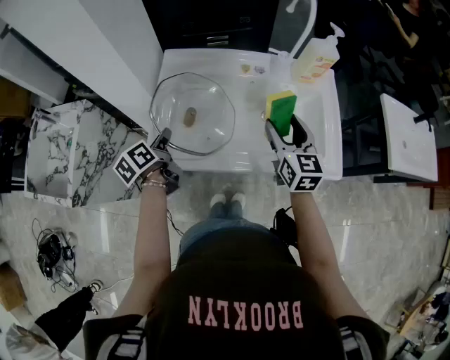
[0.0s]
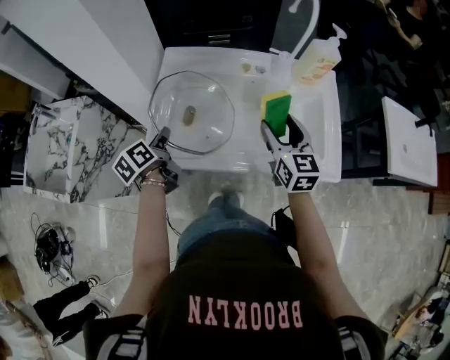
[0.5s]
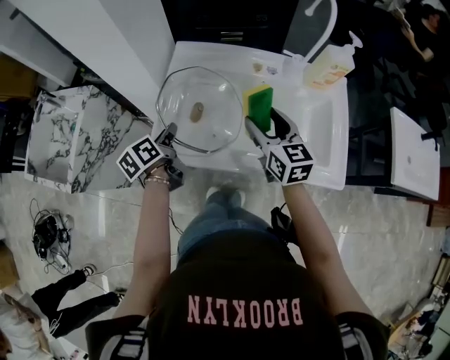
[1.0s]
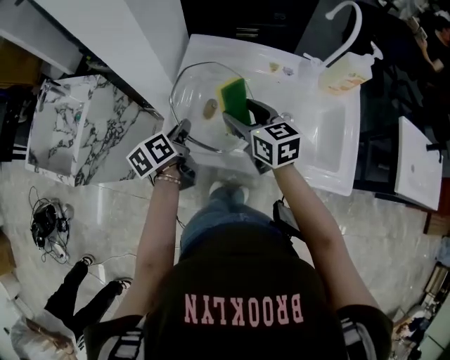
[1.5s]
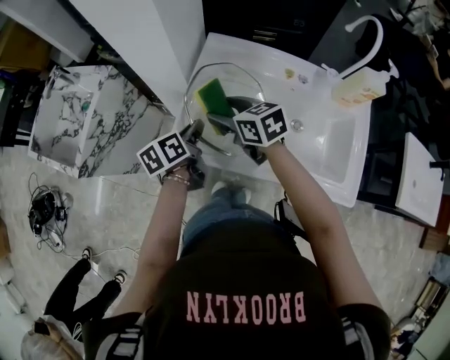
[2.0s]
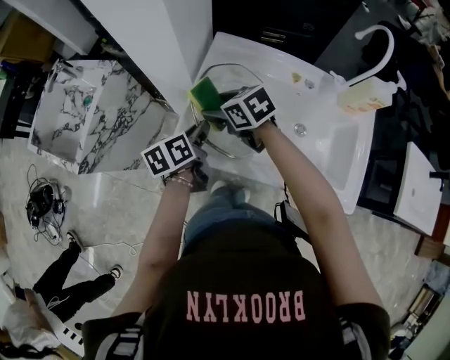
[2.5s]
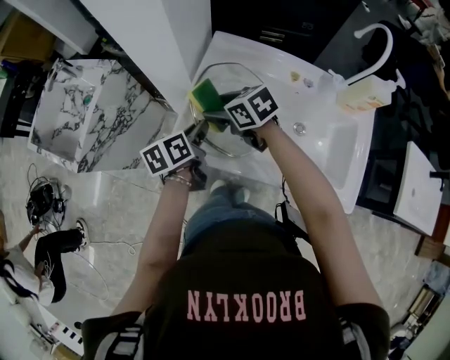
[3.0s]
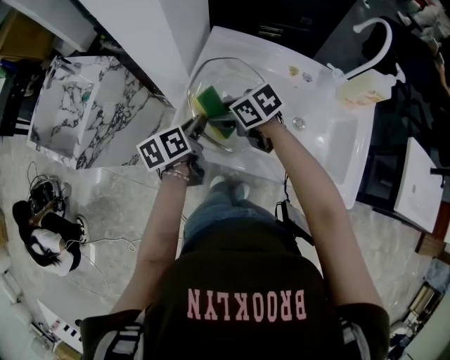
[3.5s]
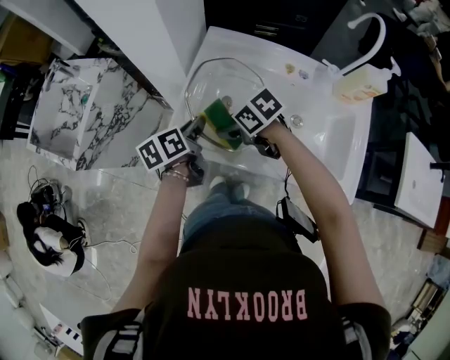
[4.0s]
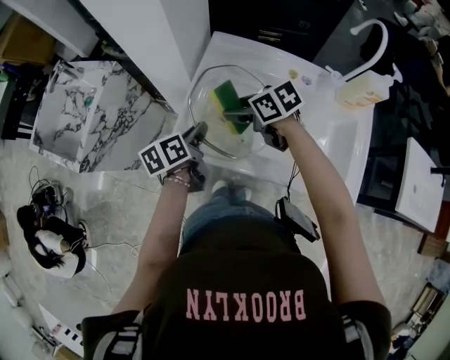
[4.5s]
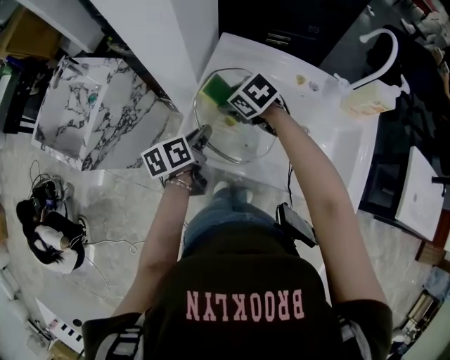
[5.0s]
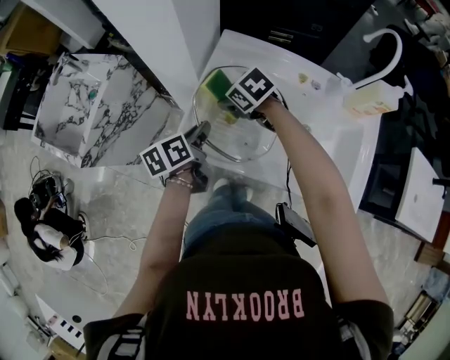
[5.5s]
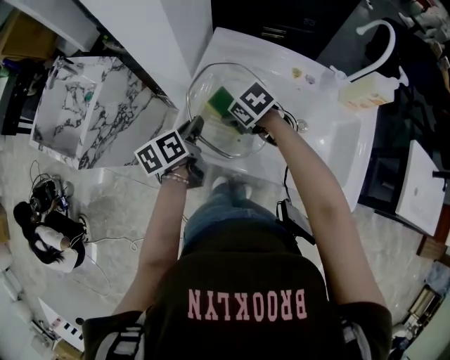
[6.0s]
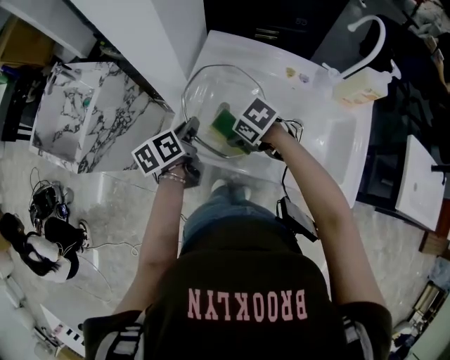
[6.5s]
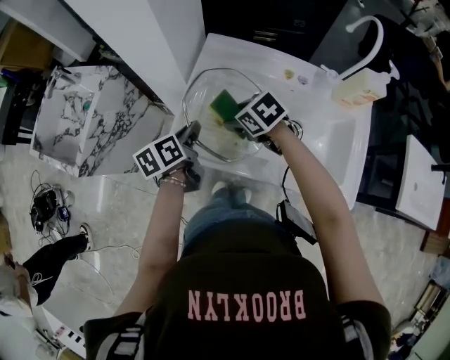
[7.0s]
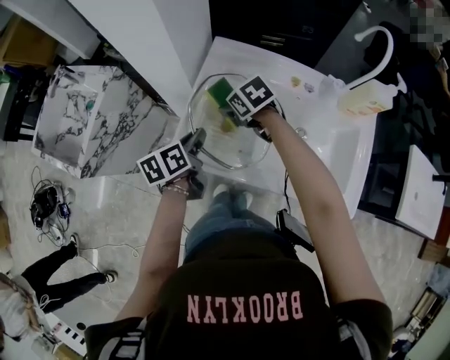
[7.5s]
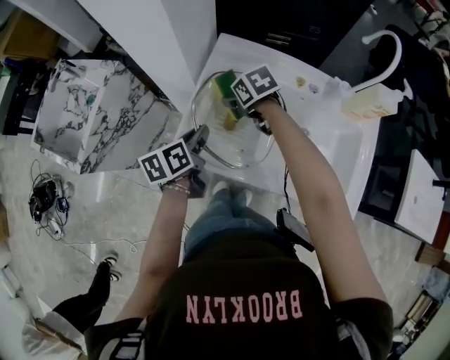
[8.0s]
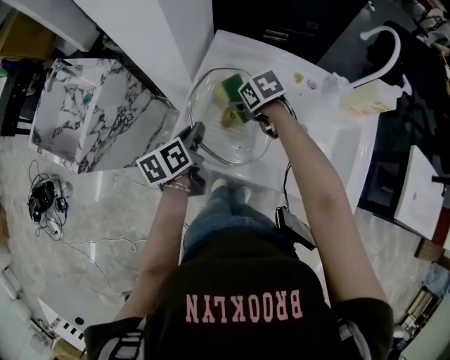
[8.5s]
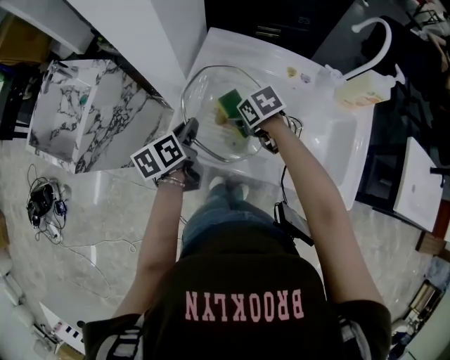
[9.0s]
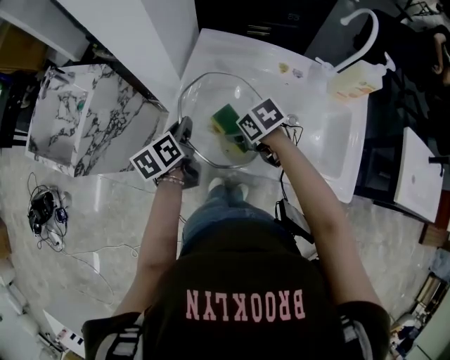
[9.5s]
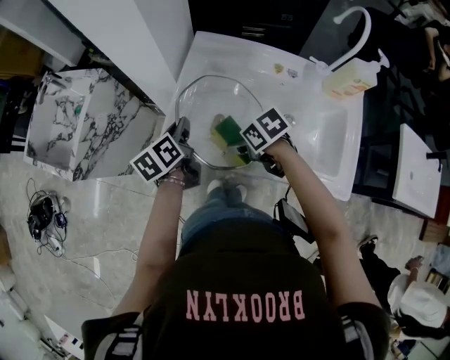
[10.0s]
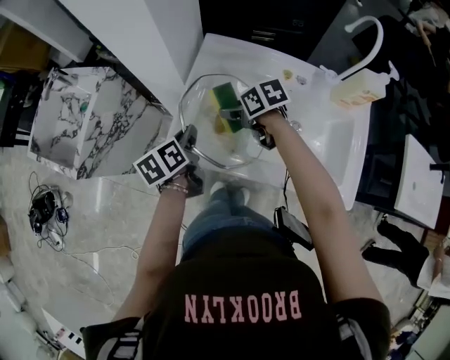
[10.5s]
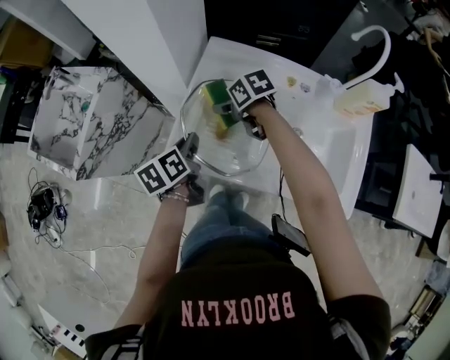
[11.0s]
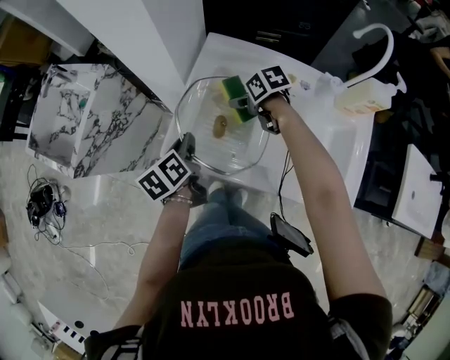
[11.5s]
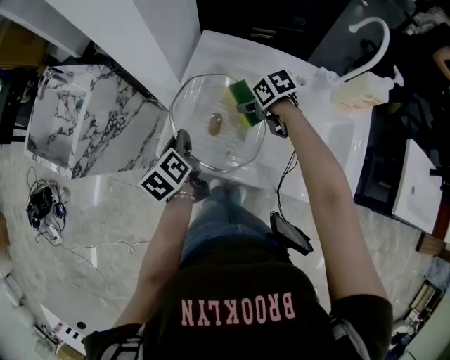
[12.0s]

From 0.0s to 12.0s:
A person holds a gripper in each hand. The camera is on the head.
From 0.0s to 2.0s: The right gripper moves about 30 cm, and changes its angle by approximately 50 degrees.
From 2.0s to 4.0s: The right gripper shifts approximately 5 cm downward, and swivels approximately 30 degrees.
From 6.0s to 8.0s: The right gripper changes place by about 10 cm.
From 8.0s to 10.0s: The right gripper ends up some 20 cm from where it was.
From 10.0s to 12.0s: The right gripper ends up some 15 cm from where it was.

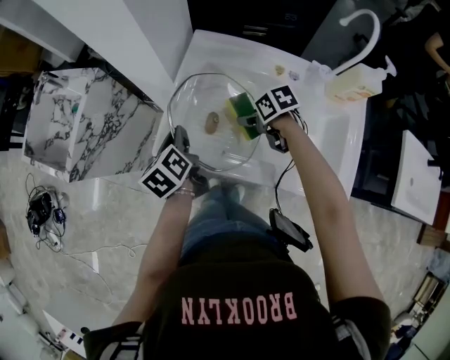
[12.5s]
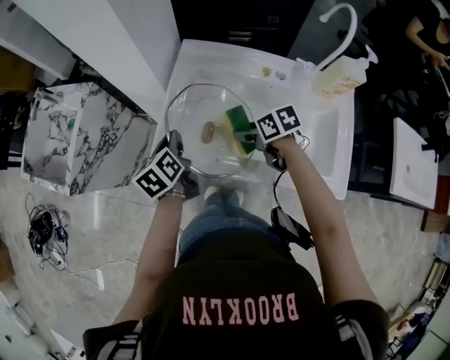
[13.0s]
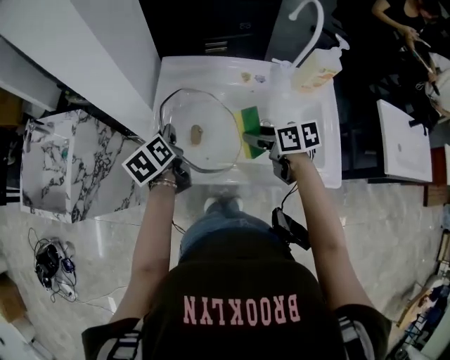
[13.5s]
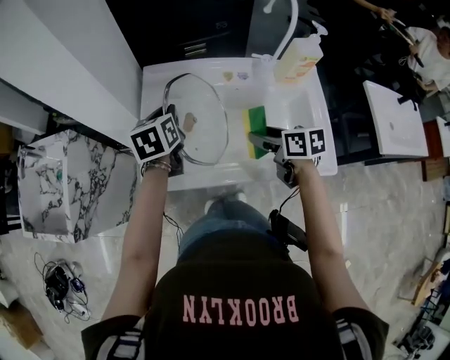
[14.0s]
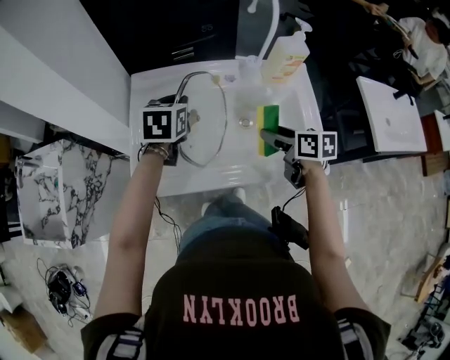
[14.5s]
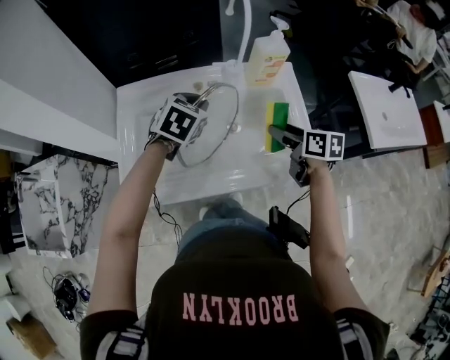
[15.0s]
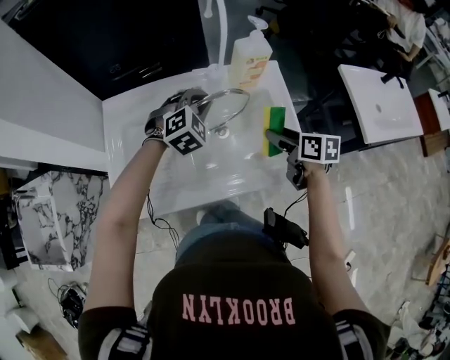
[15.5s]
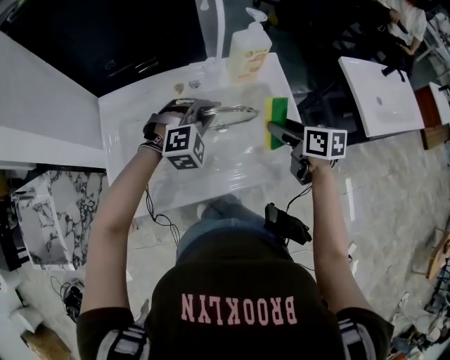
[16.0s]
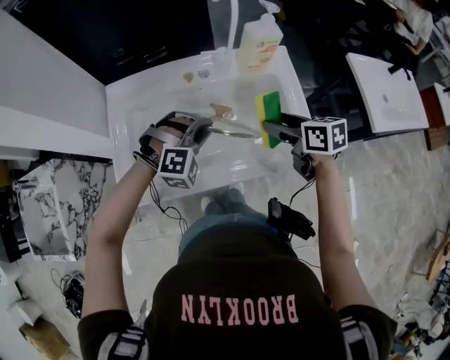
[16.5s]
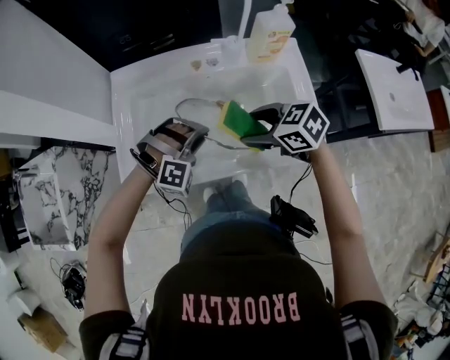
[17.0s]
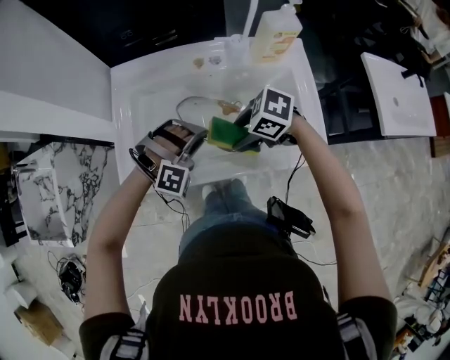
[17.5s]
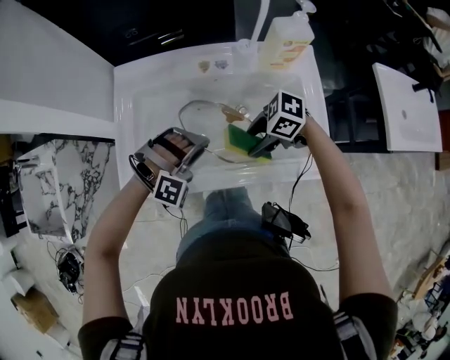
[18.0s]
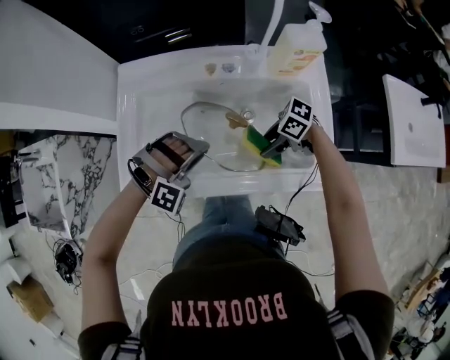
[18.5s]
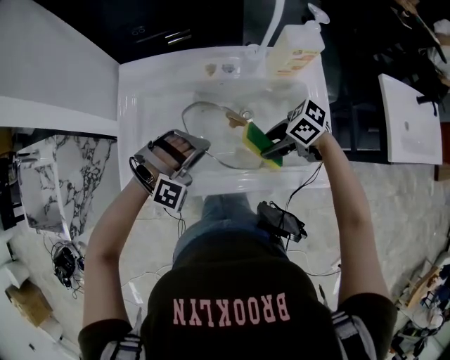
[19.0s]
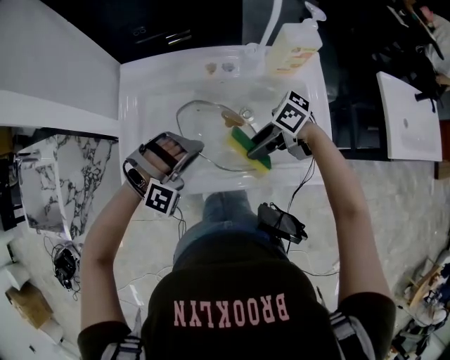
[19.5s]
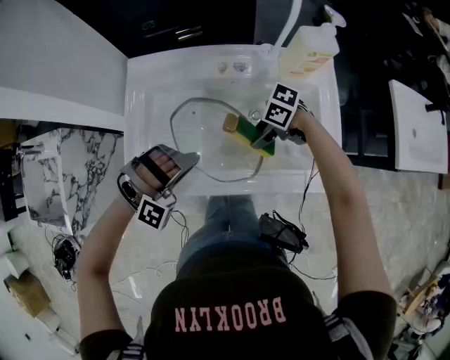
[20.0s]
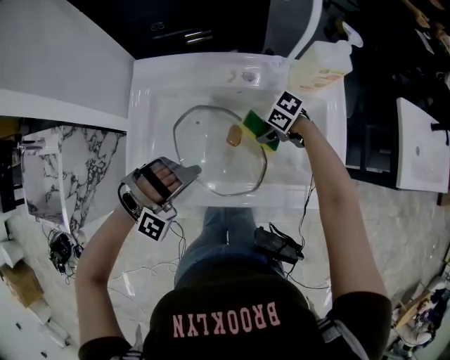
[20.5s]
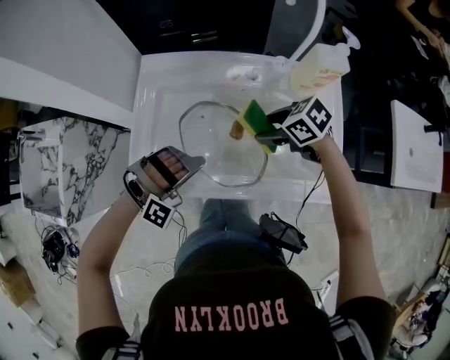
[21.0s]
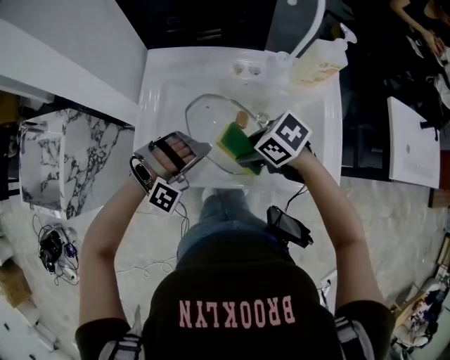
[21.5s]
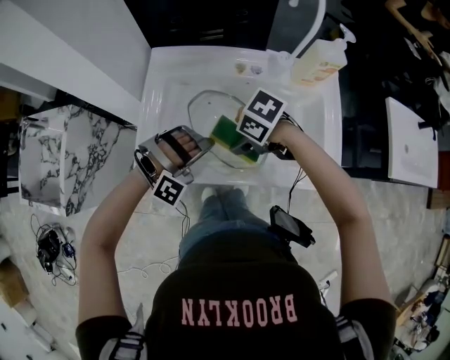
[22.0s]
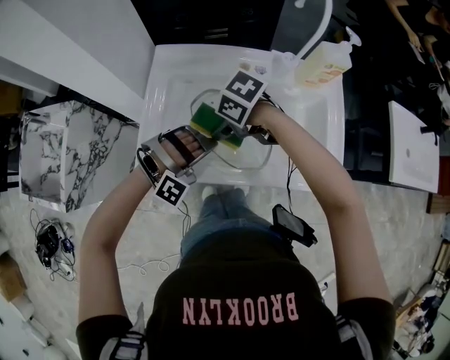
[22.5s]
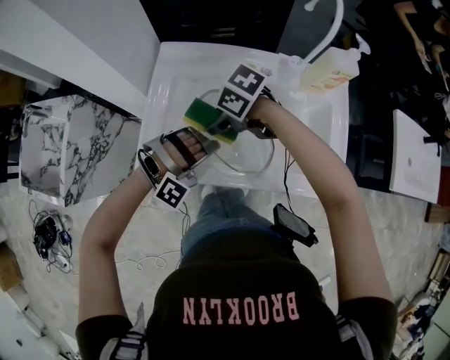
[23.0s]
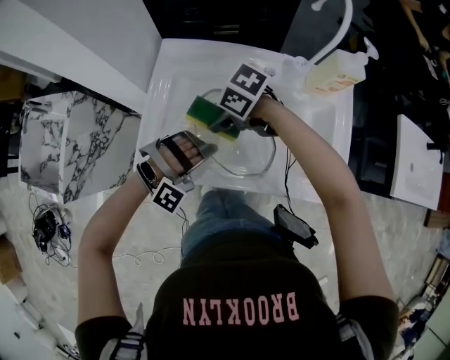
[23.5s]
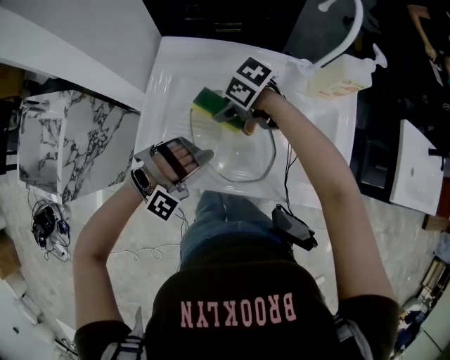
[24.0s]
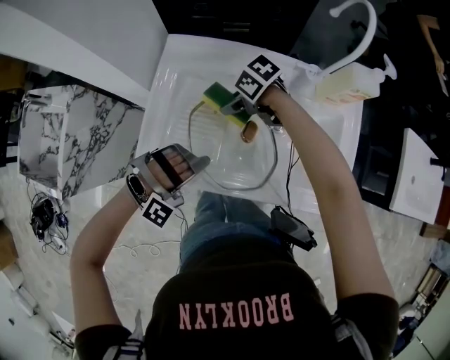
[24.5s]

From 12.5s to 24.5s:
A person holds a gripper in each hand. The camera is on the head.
From 12.5s to 14.5s: The right gripper changes place by roughly 25 cm, and swivels about 50 degrees.
From 16.5s to 18.5s: The right gripper heads downward, covering approximately 15 cm, and turns by roughly 70 degrees.
From 18.5s to 20.5s: The right gripper moves approximately 10 cm.
From 20.5s to 22.5s: The right gripper changes place by some 25 cm.
From 22.5s to 24.5s: The right gripper changes place by approximately 10 cm.

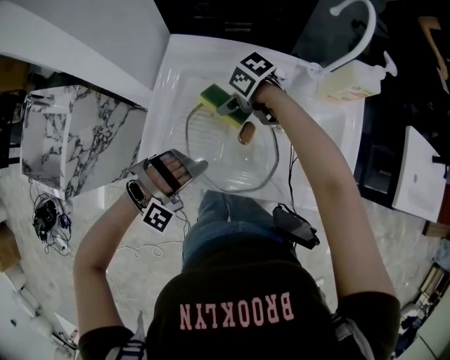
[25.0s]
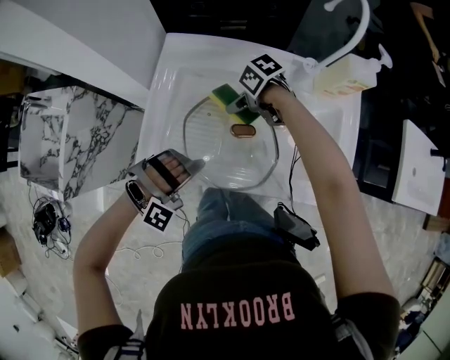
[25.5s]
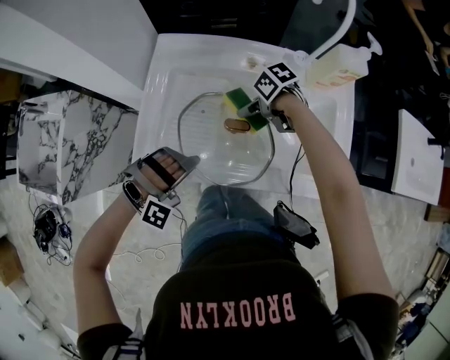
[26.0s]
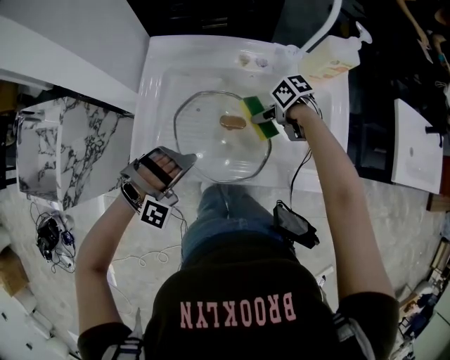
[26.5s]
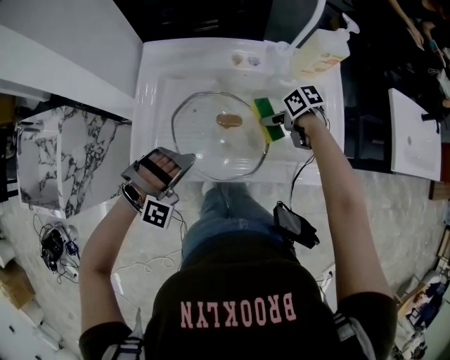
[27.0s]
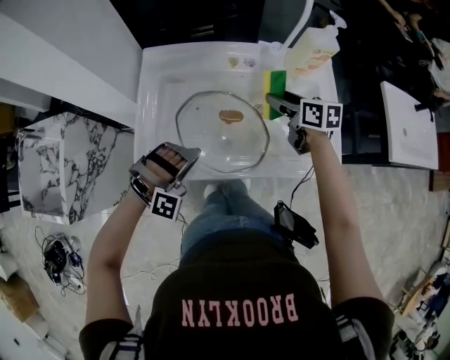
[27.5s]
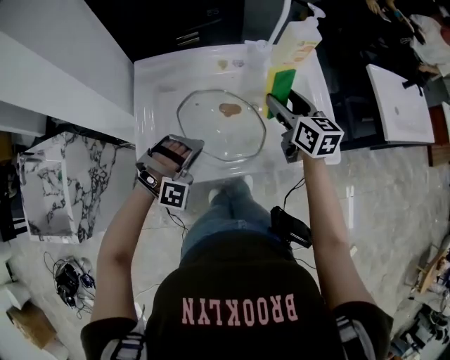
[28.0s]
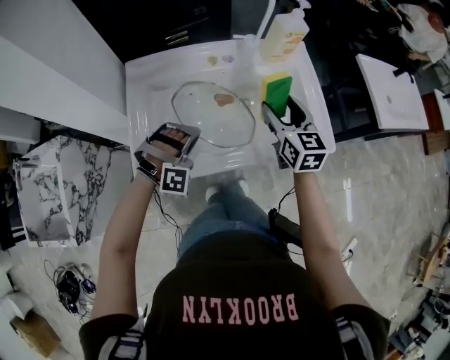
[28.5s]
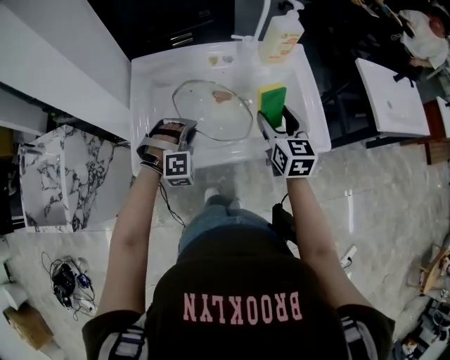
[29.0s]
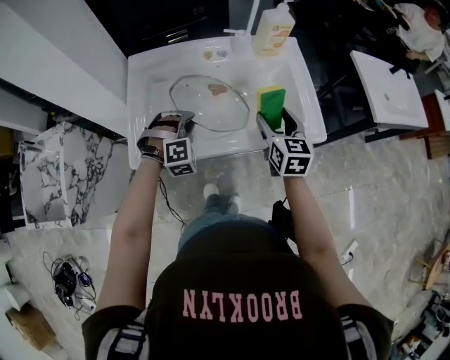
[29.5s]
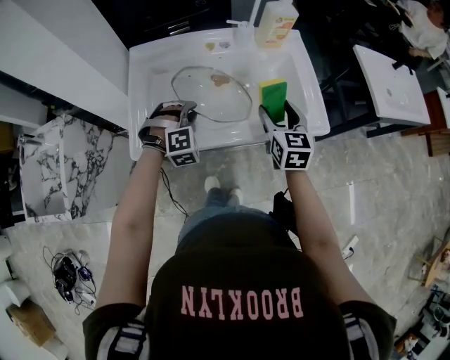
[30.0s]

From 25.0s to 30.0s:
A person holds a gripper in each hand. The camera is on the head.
From 25.0s to 27.5s: The right gripper shifts by roughly 25 cm, and changes its angle by about 60 degrees.
From 27.5s to 30.0s: The right gripper ends up some 20 cm from where it was, and rotates about 40 degrees.
